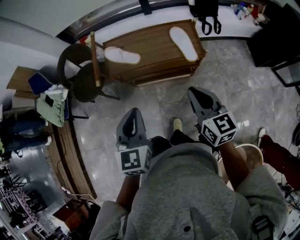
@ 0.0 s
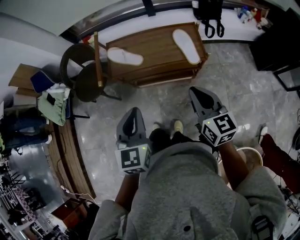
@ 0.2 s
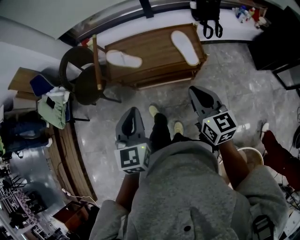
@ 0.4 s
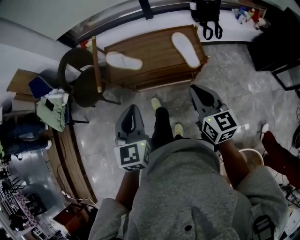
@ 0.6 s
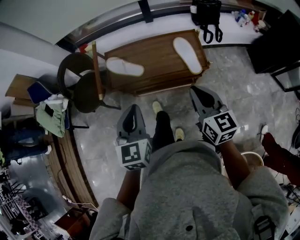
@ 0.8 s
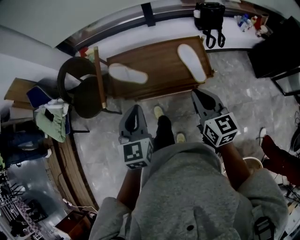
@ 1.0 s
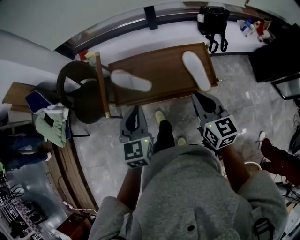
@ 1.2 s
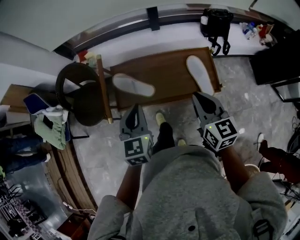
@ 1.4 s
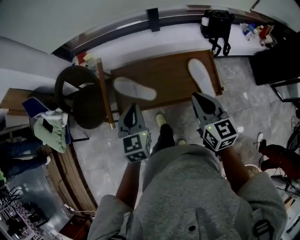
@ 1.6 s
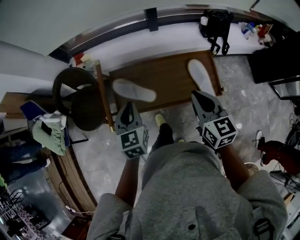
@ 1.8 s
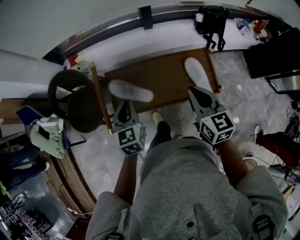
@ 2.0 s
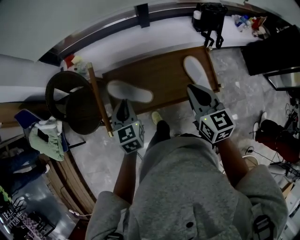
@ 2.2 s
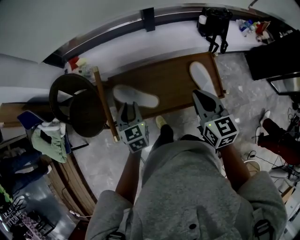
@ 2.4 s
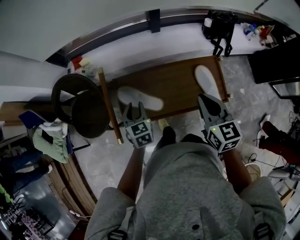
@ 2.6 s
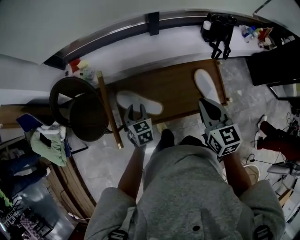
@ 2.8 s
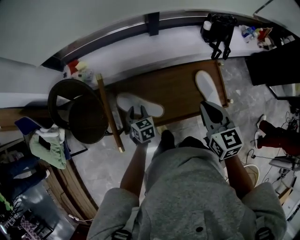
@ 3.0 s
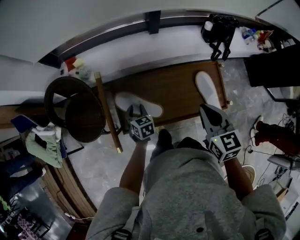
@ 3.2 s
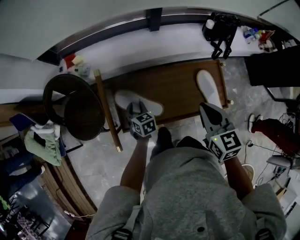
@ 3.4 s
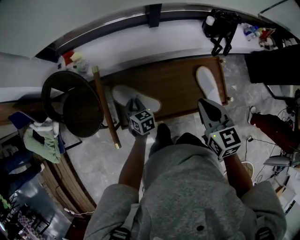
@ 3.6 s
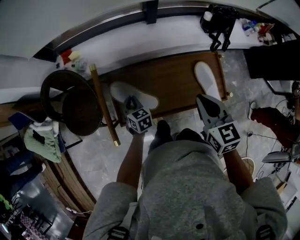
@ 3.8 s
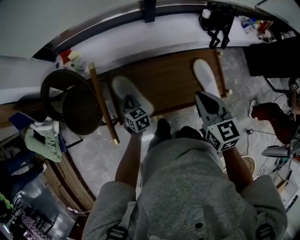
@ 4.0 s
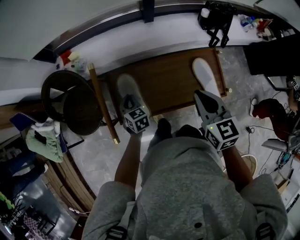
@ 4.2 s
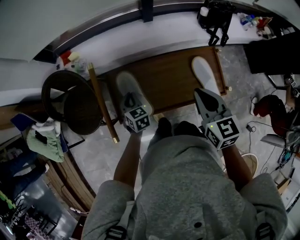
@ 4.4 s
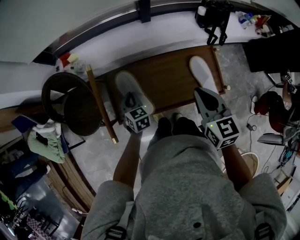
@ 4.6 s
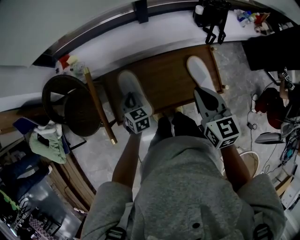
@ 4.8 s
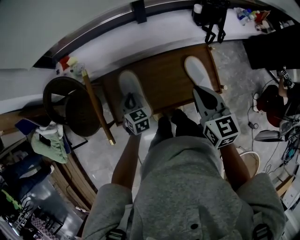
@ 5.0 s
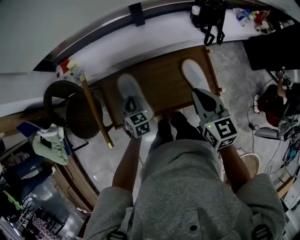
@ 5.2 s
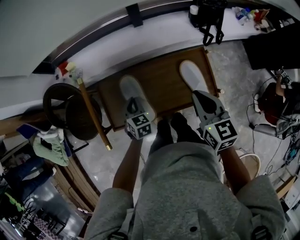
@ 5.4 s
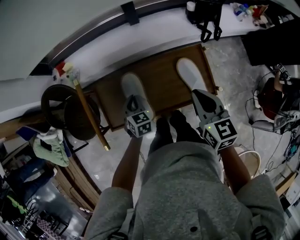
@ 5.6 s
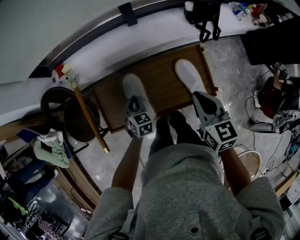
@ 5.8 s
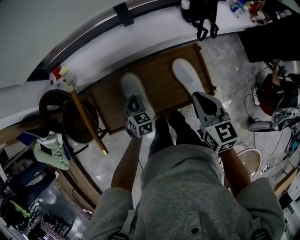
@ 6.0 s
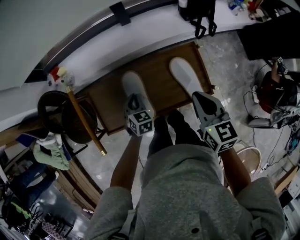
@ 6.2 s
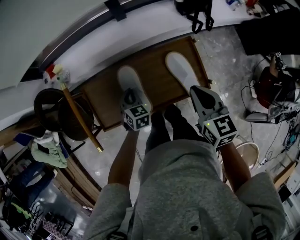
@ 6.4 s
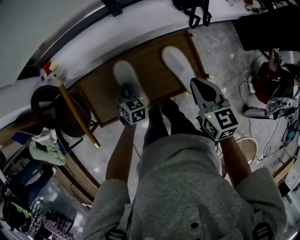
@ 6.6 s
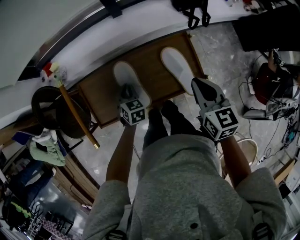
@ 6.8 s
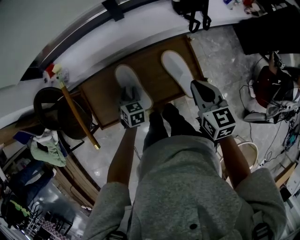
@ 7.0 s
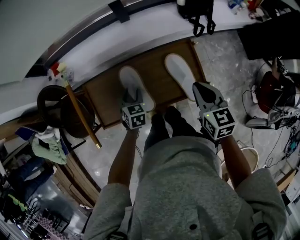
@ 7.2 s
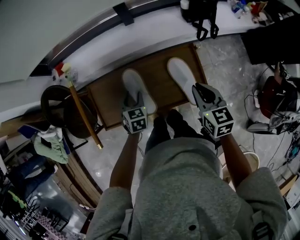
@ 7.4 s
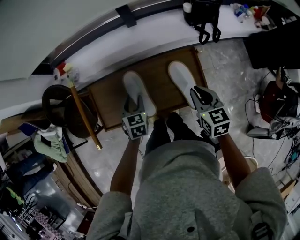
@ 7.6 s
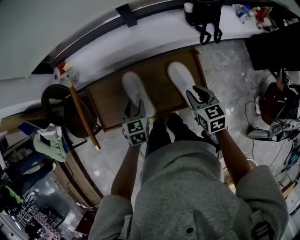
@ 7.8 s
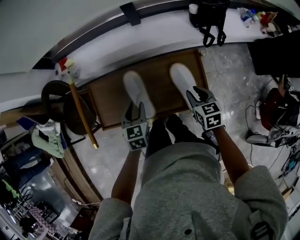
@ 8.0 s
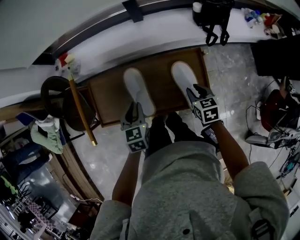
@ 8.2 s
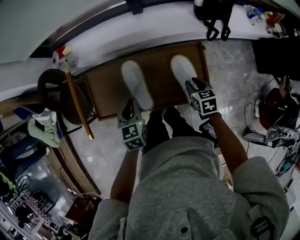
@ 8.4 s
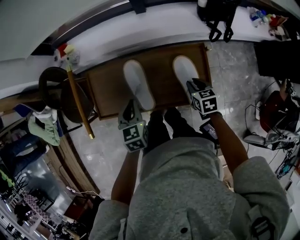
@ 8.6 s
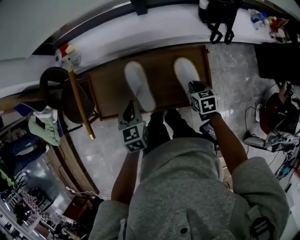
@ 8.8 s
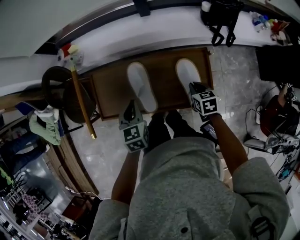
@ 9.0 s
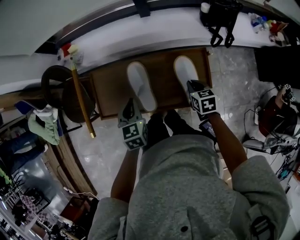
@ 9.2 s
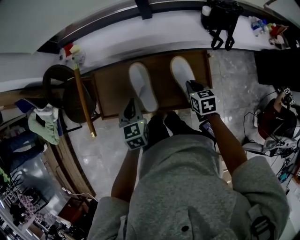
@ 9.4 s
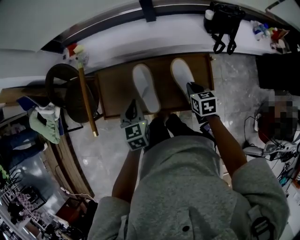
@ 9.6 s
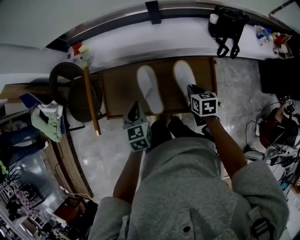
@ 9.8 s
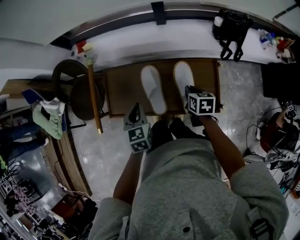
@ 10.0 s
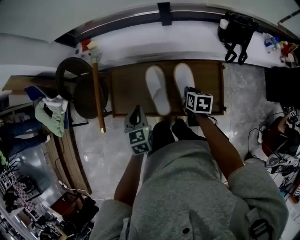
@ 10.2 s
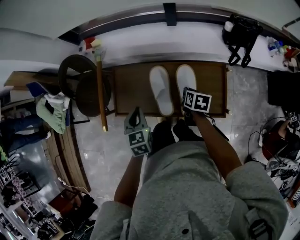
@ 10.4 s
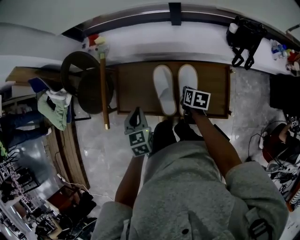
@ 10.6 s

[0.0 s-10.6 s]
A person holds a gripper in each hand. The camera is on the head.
0.0 to 1.6 s: The grippers both shift forward by roughly 25 cm.
1.6 to 3.0 s: The left gripper is displaced downward and forward by some 25 cm, changes its angle by some 20 degrees, and opens up; the right gripper travels forward by roughly 10 cm.
3.0 to 4.6 s: The left gripper closes.
4.6 to 6.0 s: Both grippers move to the right, some 10 cm.
6.0 to 7.6 s: The left gripper changes place by approximately 5 cm, and opens its fingers, while the right gripper is displaced downward and to the right by approximately 10 cm.
7.6 to 9.0 s: The right gripper goes roughly 15 cm downward. The left gripper ends up about 5 cm from where it was, and closes its fingers.
9.0 to 10.6 s: The left gripper goes approximately 10 cm to the left, while the right gripper moves to the left and forward, roughly 15 cm, and swivels roughly 20 degrees.

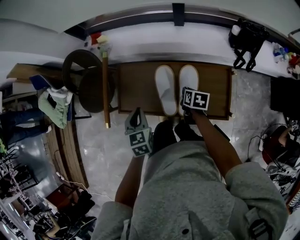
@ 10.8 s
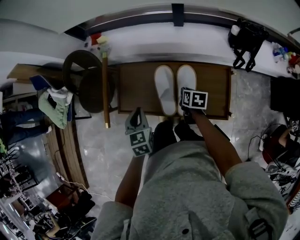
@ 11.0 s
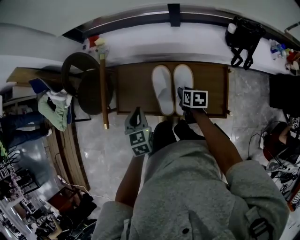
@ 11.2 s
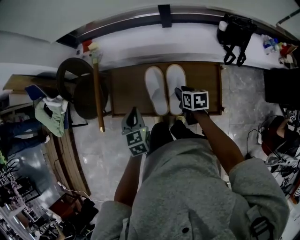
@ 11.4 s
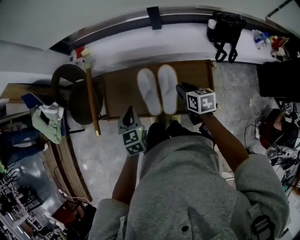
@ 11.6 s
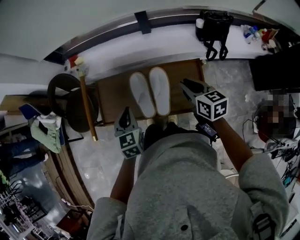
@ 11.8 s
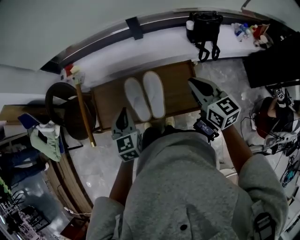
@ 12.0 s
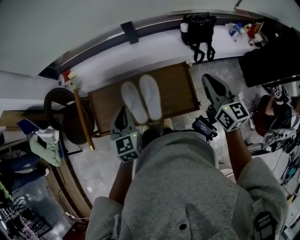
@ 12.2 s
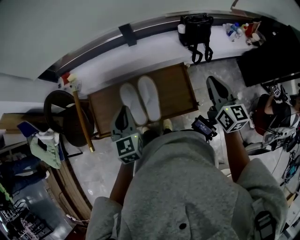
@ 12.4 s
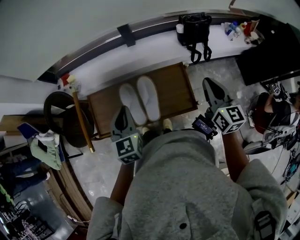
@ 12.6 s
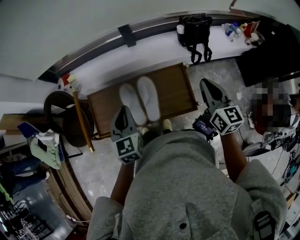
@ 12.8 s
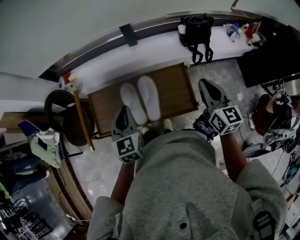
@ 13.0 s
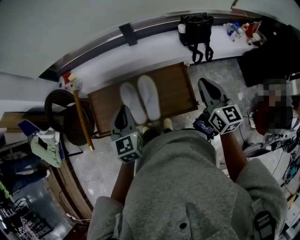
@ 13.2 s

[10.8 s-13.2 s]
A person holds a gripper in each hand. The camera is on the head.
10.8 to 12.0 s: The right gripper travels upward and to the right by about 30 cm, and angles its fingers upward, by some 40 degrees, while the left gripper moves to the right and upward, approximately 10 cm.
12.0 to 13.2 s: The left gripper shifts by approximately 5 cm. The right gripper shifts roughly 10 cm to the right.

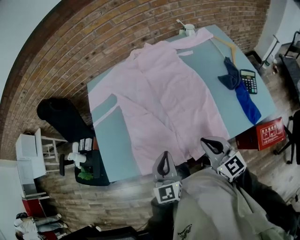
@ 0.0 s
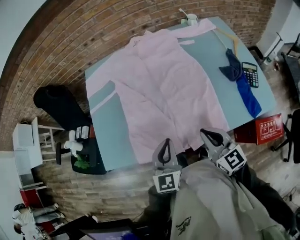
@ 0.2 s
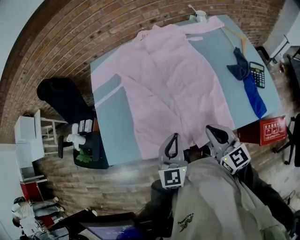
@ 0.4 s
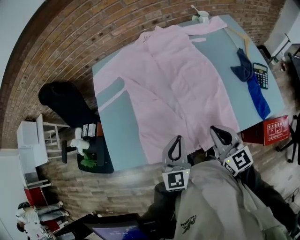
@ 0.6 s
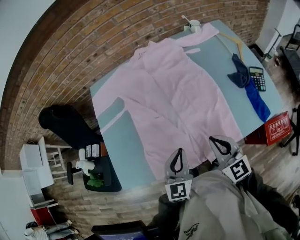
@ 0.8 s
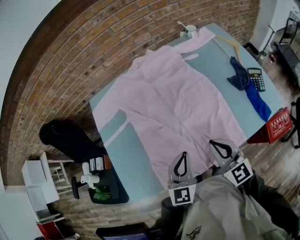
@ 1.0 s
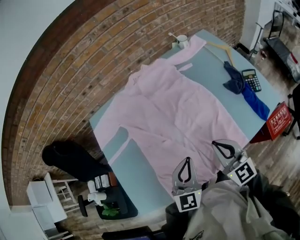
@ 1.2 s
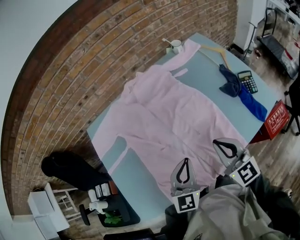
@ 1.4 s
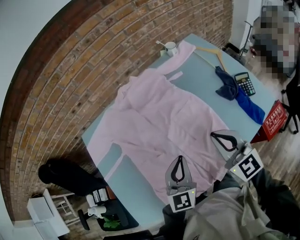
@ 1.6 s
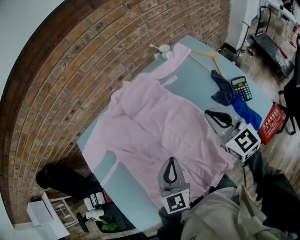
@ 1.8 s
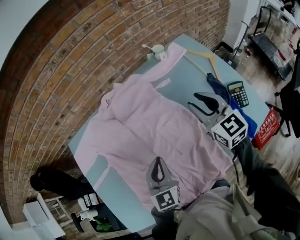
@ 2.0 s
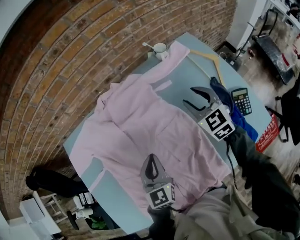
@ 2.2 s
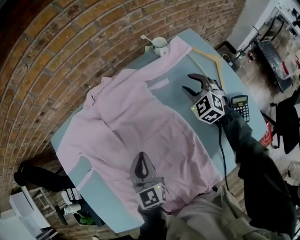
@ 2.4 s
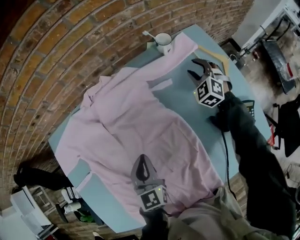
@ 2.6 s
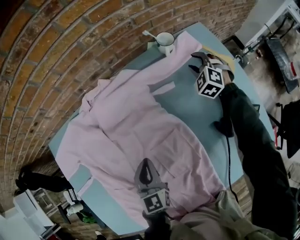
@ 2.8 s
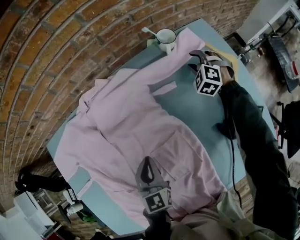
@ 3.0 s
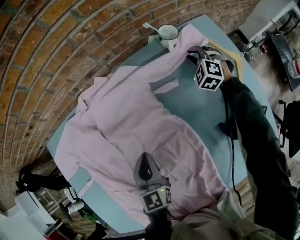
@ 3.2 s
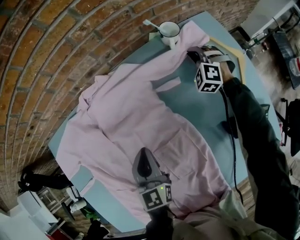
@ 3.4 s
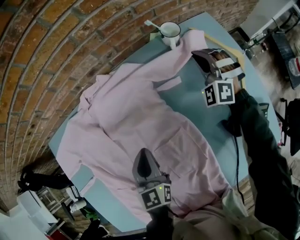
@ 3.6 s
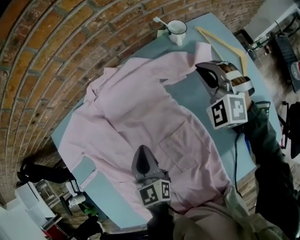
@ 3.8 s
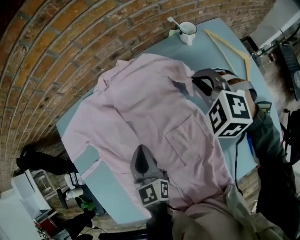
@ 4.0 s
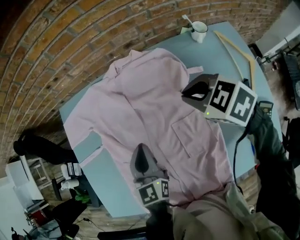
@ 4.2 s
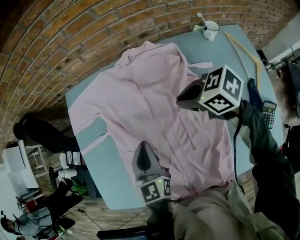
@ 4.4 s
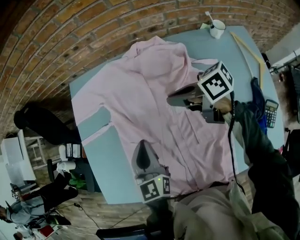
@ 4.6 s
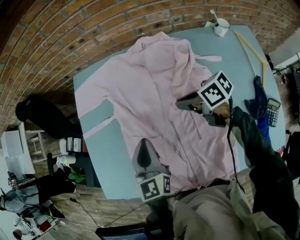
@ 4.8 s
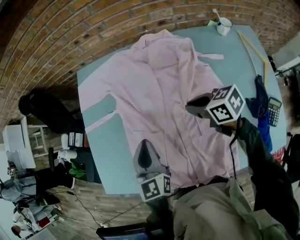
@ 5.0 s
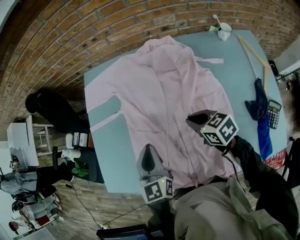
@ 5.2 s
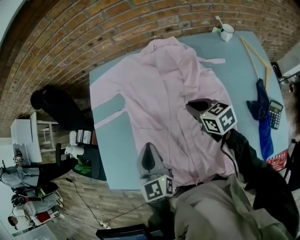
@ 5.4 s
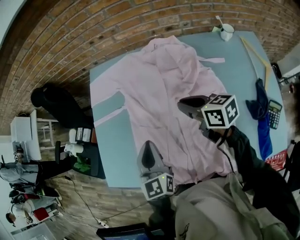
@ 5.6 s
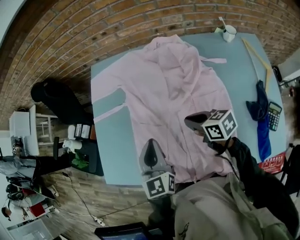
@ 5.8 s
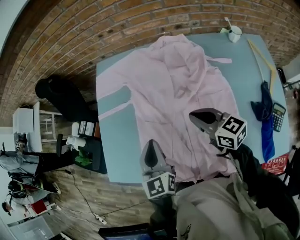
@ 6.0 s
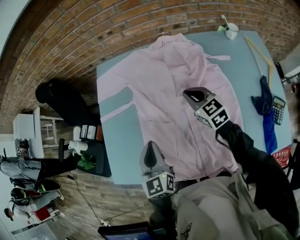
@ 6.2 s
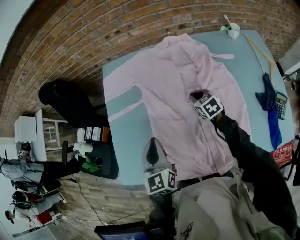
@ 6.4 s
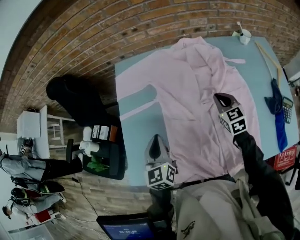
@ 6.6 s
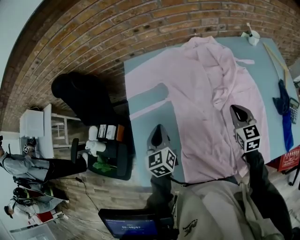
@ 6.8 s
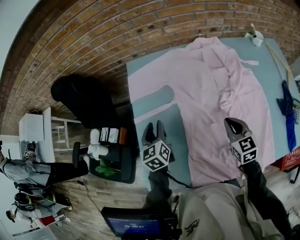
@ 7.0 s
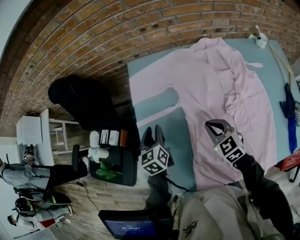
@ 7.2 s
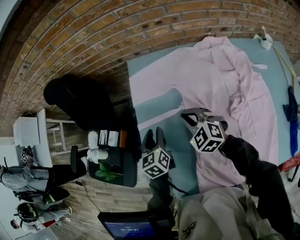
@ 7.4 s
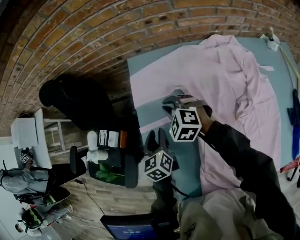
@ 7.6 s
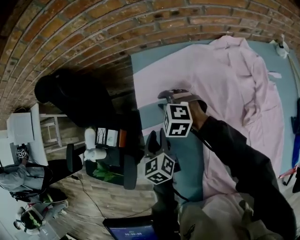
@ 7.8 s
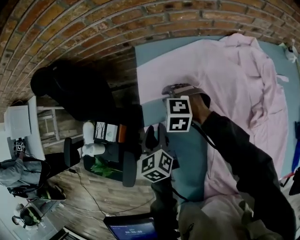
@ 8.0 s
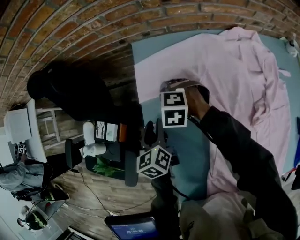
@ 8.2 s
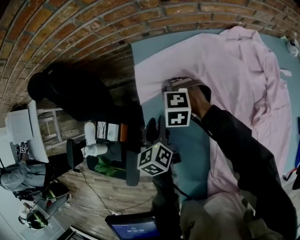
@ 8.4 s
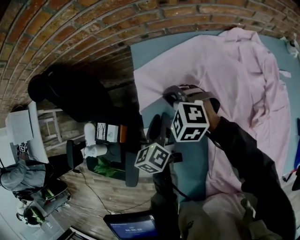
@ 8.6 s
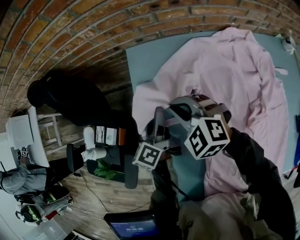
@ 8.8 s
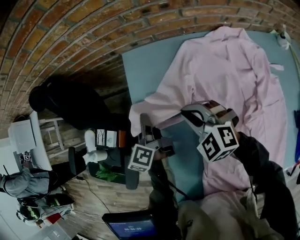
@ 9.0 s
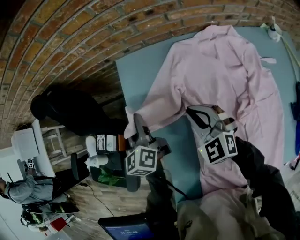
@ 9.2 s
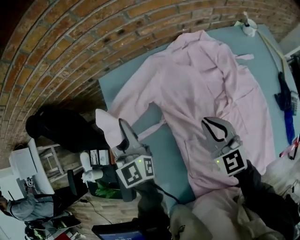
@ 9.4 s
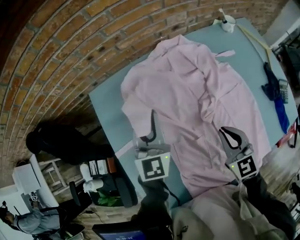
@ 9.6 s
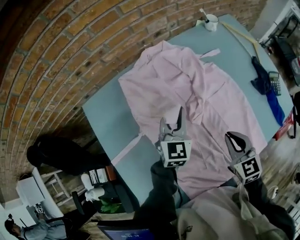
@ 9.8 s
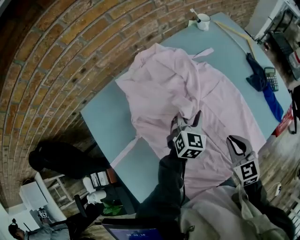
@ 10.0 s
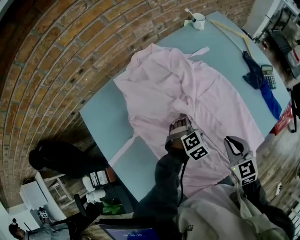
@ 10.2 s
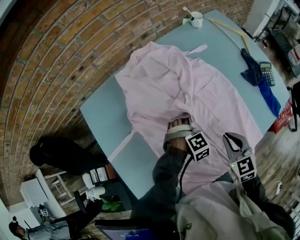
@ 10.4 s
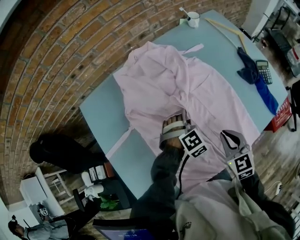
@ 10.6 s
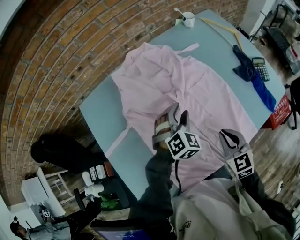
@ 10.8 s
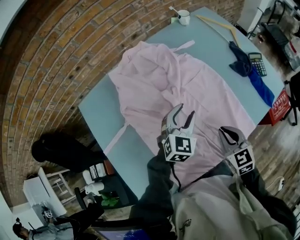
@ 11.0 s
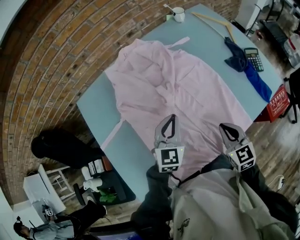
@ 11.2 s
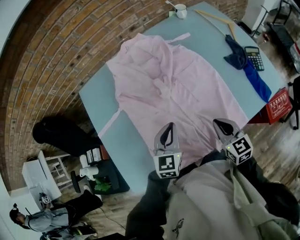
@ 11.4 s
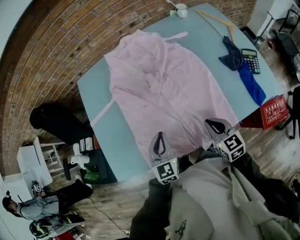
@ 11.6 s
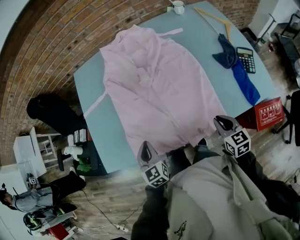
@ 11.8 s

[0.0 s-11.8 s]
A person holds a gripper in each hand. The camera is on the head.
0.0 to 1.4 s: The left gripper travels forward by some 10 cm, and rotates roughly 20 degrees; the right gripper heads forward and upward, covering approximately 10 cm, and turns by about 20 degrees.
1.4 to 3.0 s: The left gripper travels forward and downward by some 30 cm, and swivels approximately 20 degrees. Meanwhile the right gripper goes roughly 60 cm forward, downward and to the right, tilts its fingers approximately 40 degrees downward, and opens its fingers.
3.0 to 4.4 s: The right gripper ends up approximately 40 cm from where it was, rotates roughly 70 degrees, and closes its fingers. Meanwhile the left gripper moves roughly 20 cm, and turns by roughly 20 degrees.
4.4 to 6.0 s: Both grippers move to the left and backward, about 15 cm. The right gripper changes its angle by about 30 degrees.
6.0 to 7.4 s: The right gripper goes up and down, approximately 15 cm each way, reversing 2 times, and rotates around the line of its fingers by about 40 degrees, counterclockwise from behind; the left gripper ends up about 30 cm from where it was, and swivels approximately 20 degrees.
7.4 to 8.8 s: The grippers both shift forward by some 10 cm. The right gripper opens and closes again. The left gripper rotates approximately 40 degrees, and opens its fingers.
8.8 to 10.4 s: Both grippers are carried approximately 50 cm. The left gripper twists roughly 140 degrees clockwise, seen from behind, and closes and opens again, while the right gripper turns by some 70 degrees.
10.4 to 11.8 s: The right gripper changes place by approximately 20 cm. Meanwhile the left gripper shifts by some 25 cm, rotates around the line of its fingers by roughly 90 degrees, counterclockwise from behind, and closes.
